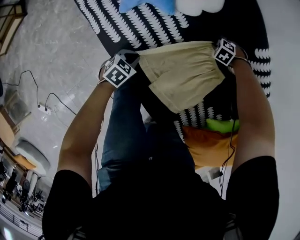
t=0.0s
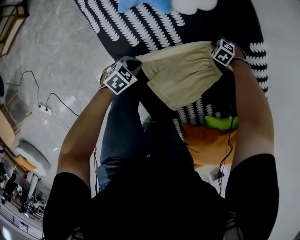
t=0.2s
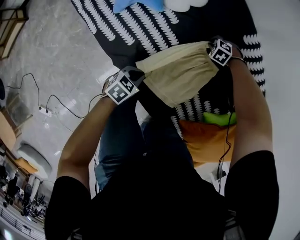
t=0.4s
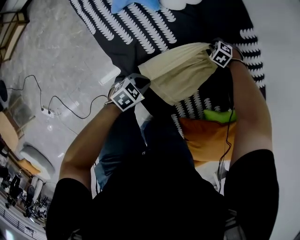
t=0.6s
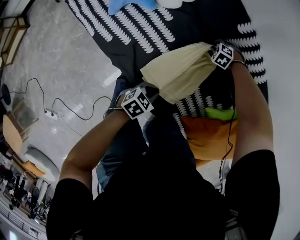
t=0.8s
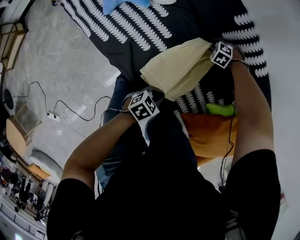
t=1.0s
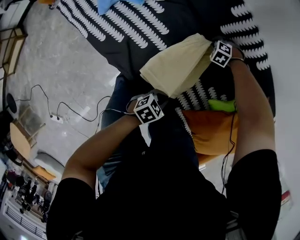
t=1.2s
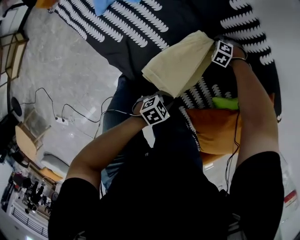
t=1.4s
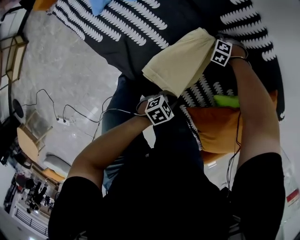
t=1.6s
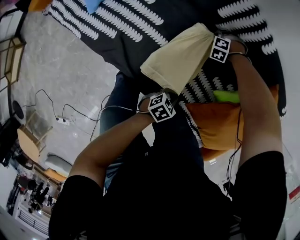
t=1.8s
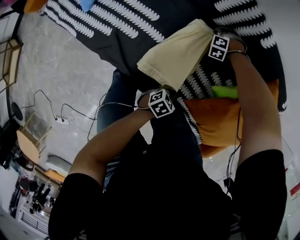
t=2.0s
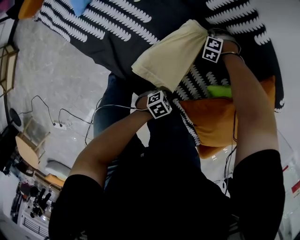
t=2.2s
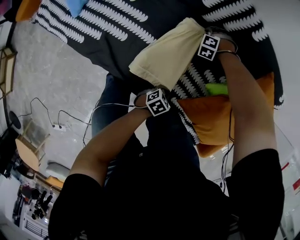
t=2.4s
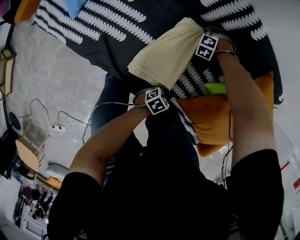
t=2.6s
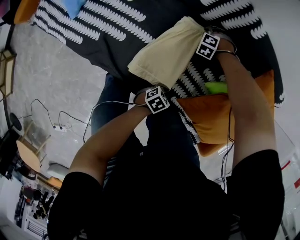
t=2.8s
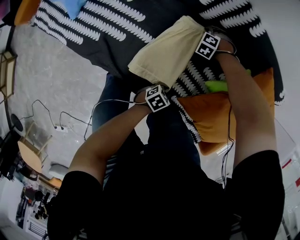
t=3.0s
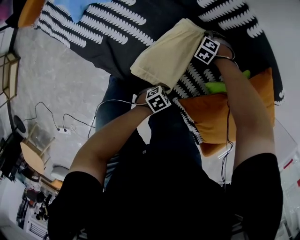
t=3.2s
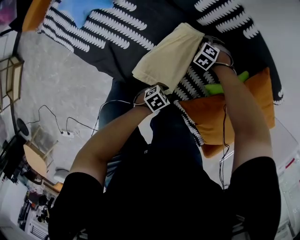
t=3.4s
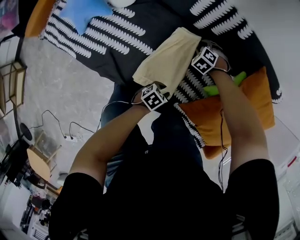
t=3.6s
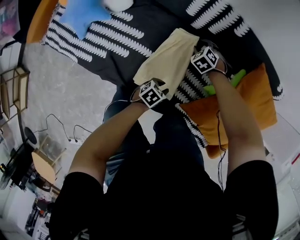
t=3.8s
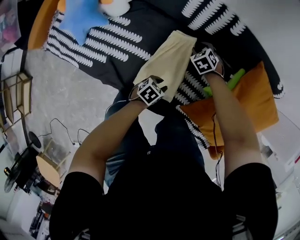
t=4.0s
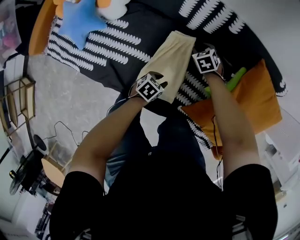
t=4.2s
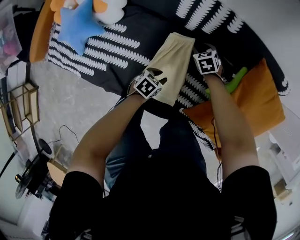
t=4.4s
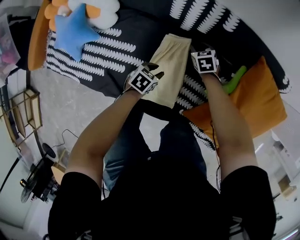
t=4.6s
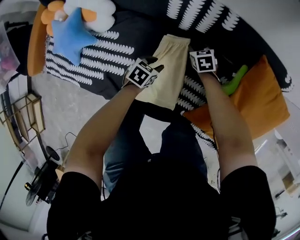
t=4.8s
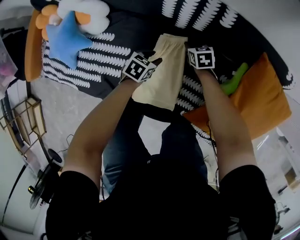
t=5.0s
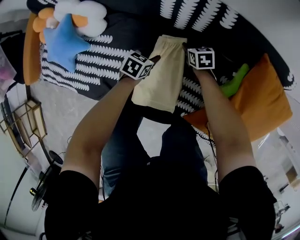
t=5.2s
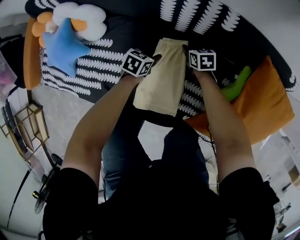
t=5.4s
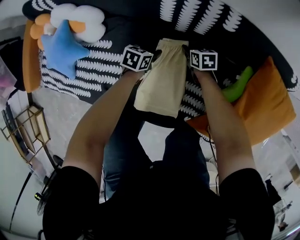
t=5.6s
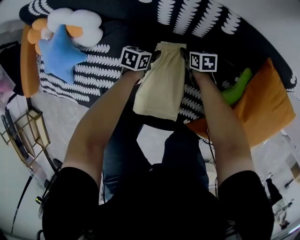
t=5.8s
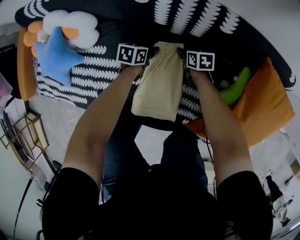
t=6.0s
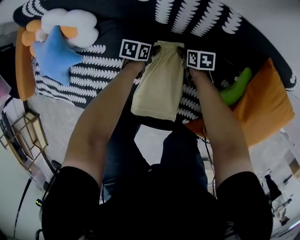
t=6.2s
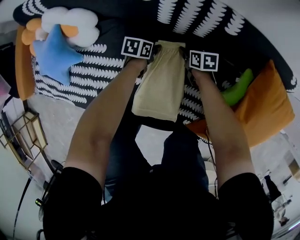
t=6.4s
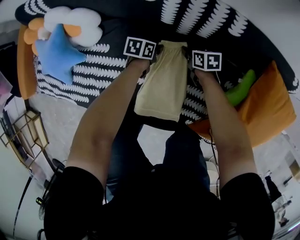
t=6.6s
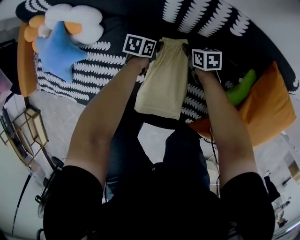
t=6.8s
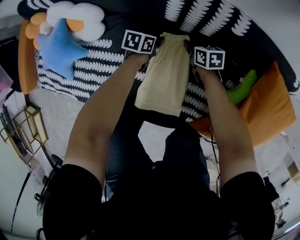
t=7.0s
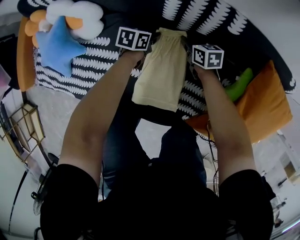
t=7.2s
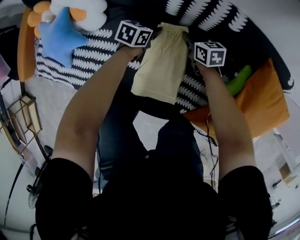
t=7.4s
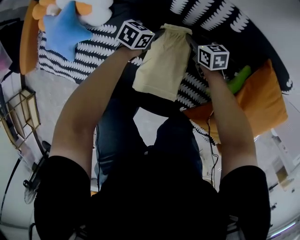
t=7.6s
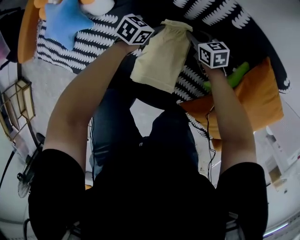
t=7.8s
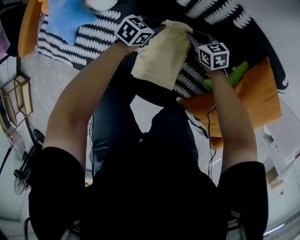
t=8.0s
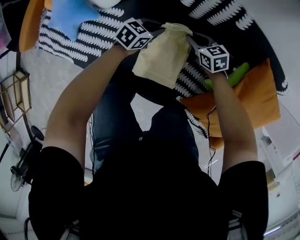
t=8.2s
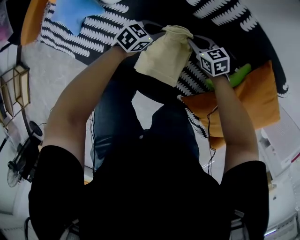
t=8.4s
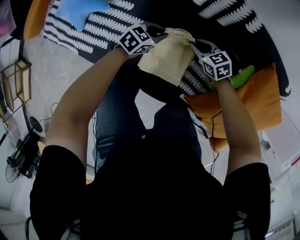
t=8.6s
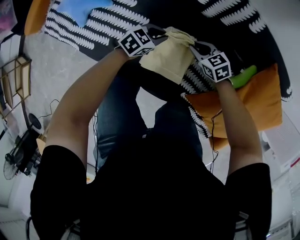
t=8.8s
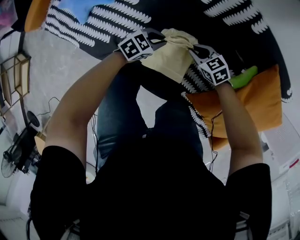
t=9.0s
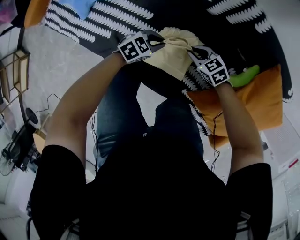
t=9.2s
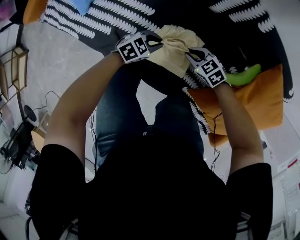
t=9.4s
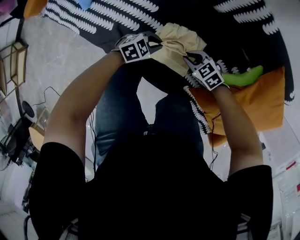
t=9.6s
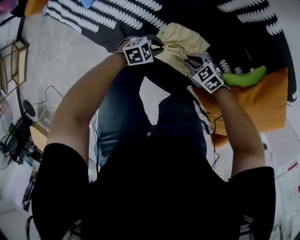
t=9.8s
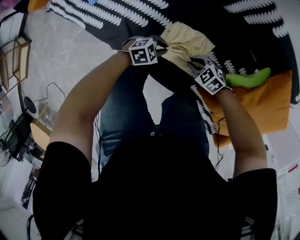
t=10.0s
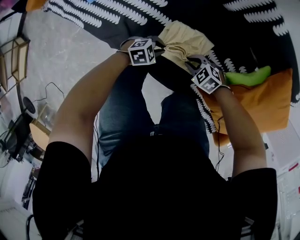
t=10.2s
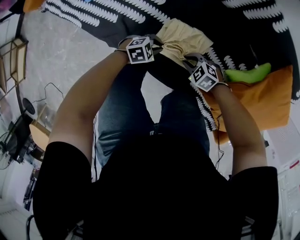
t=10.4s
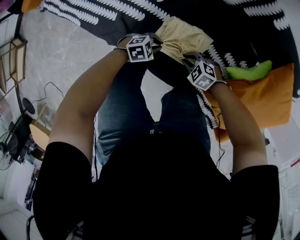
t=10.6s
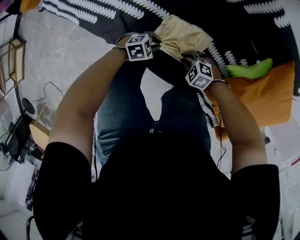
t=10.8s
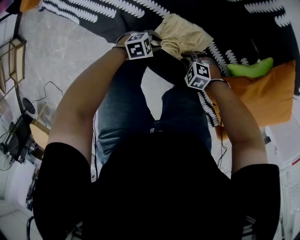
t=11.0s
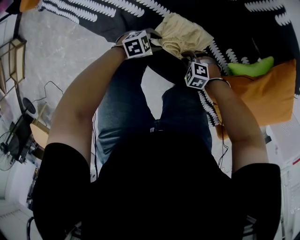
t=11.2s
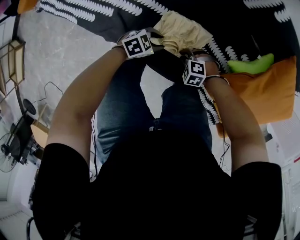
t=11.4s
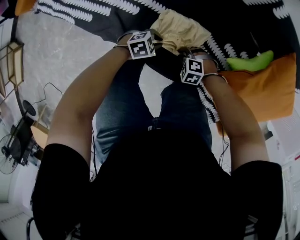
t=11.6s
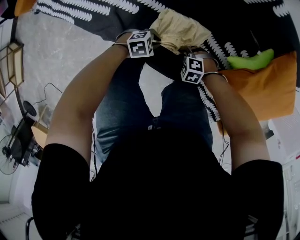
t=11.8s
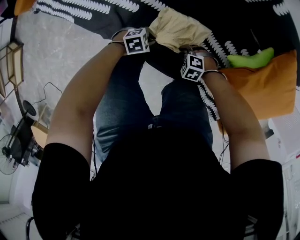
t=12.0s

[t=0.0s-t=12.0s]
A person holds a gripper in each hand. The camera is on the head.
t=0.0s to t=1.6s: The left gripper changes place by about 35 cm, and changes its angle by roughly 30 degrees. The right gripper moves roughly 15 cm.
t=1.6s to t=3.0s: The left gripper shifts approximately 5 cm downward, while the right gripper shifts by some 5 cm, and opens up.
t=3.0s to t=4.4s: The left gripper changes place by some 20 cm. The right gripper heads upward, covering roughly 5 cm, and rolls clockwise, seen from behind, by about 60 degrees.
t=4.4s to t=6.0s: The right gripper is displaced downward by some 10 cm, and twists roughly 40 degrees clockwise, seen from behind, while the left gripper goes some 20 cm forward and downward, and rotates about 20 degrees.
t=6.0s to t=7.6s: The two grippers go approximately 10 cm upward. The right gripper swivels approximately 20 degrees, and closes its fingers. The left gripper closes.
t=7.6s to t=9.0s: The right gripper ends up approximately 15 cm from where it was, and rotates roughly 40 degrees. The left gripper moves some 15 cm.
t=9.0s to t=10.4s: The right gripper ends up roughly 15 cm from where it was, and rotates some 30 degrees; the left gripper shifts by approximately 15 cm.
t=10.4s to t=12.0s: The right gripper heads downward, covering about 5 cm. Meanwhile the left gripper moves roughly 5 cm, and opens, then closes once more.

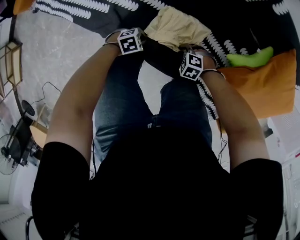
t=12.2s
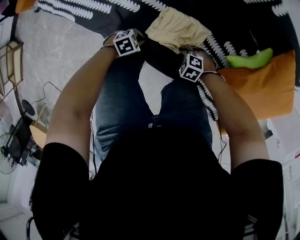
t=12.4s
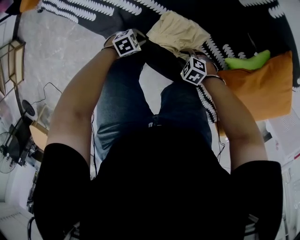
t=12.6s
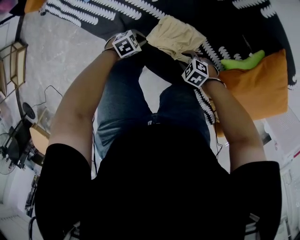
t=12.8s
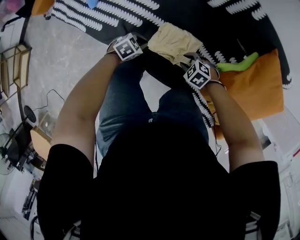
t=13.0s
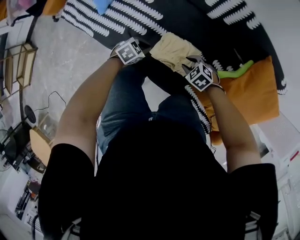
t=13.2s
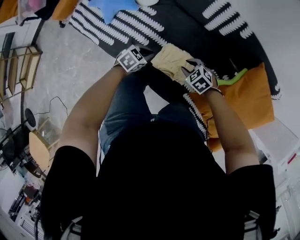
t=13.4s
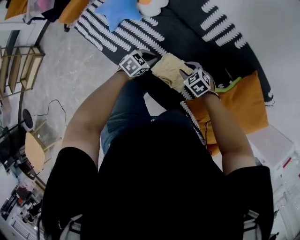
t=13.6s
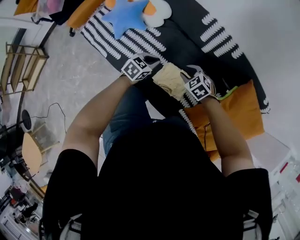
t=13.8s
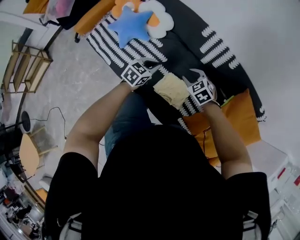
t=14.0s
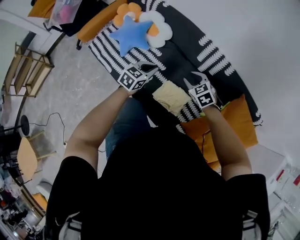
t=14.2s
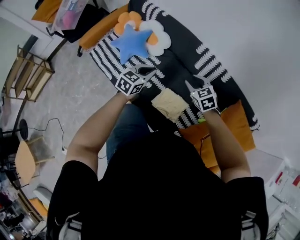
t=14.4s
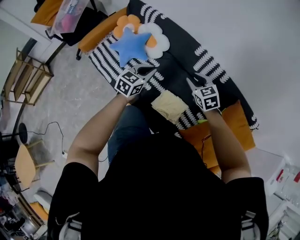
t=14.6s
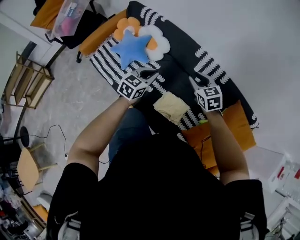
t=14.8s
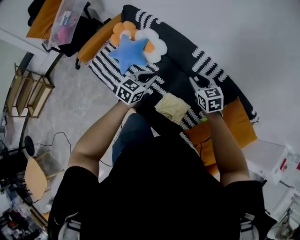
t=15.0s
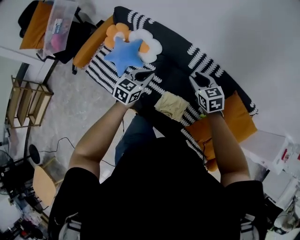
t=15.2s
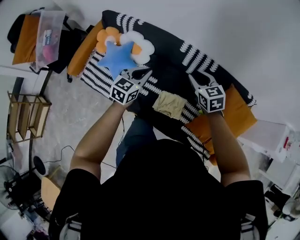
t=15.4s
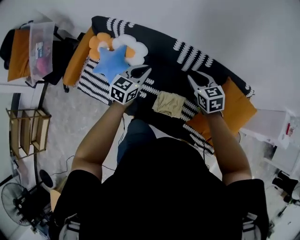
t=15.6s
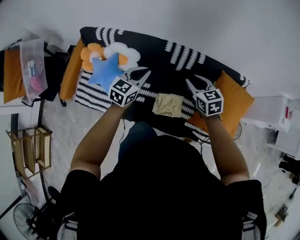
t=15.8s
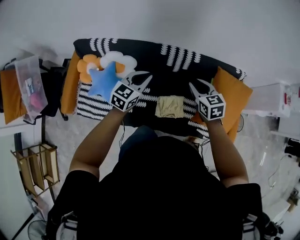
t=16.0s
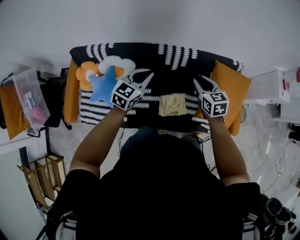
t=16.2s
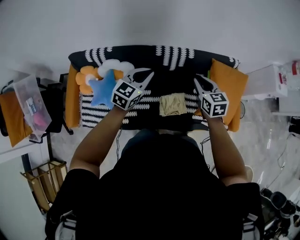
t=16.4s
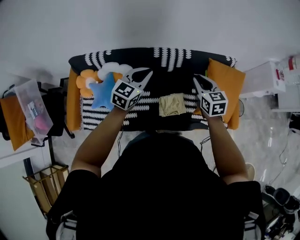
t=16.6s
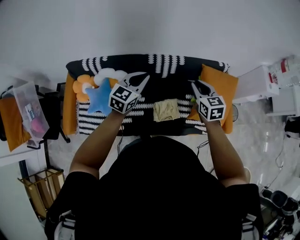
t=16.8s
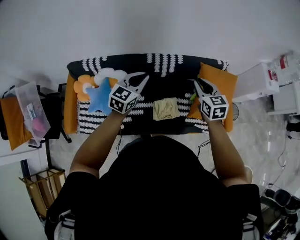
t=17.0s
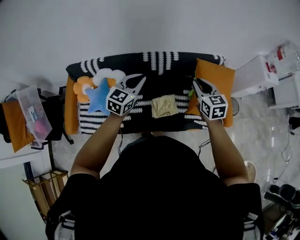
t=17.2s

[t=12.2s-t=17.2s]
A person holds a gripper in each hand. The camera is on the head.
t=12.2s to t=13.8s: The two grippers go approximately 30 cm upward. The right gripper rotates approximately 30 degrees, while the left gripper turns by about 50 degrees.
t=13.8s to t=15.6s: The grippers both shift upward by approximately 30 cm. The left gripper changes its angle by some 20 degrees. Meanwhile the right gripper changes its angle by about 50 degrees.
t=15.6s to t=17.2s: The left gripper shifts some 15 cm upward, and swivels approximately 20 degrees. Meanwhile the right gripper ends up some 20 cm from where it was, and changes its angle by some 30 degrees.

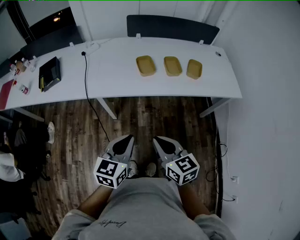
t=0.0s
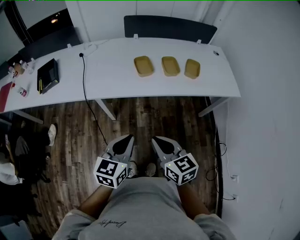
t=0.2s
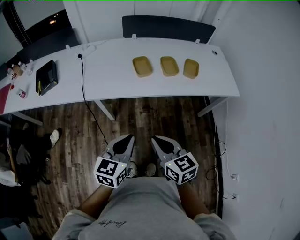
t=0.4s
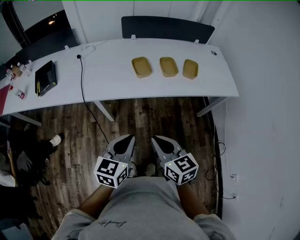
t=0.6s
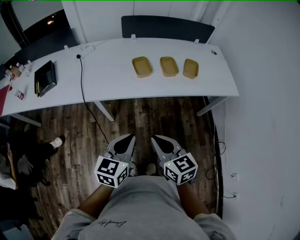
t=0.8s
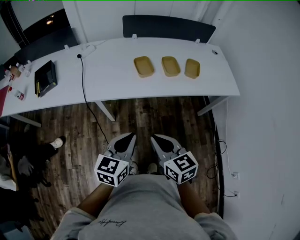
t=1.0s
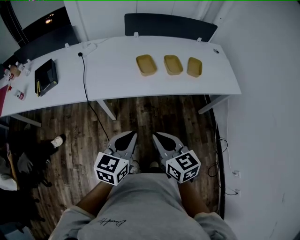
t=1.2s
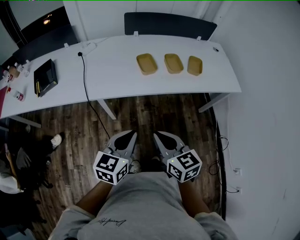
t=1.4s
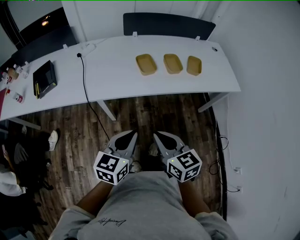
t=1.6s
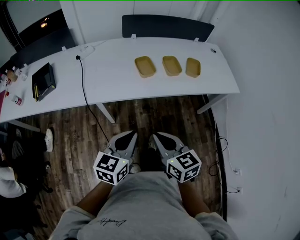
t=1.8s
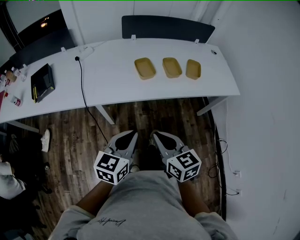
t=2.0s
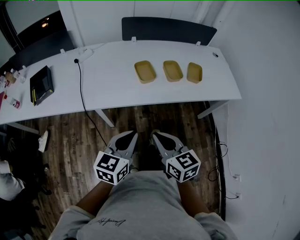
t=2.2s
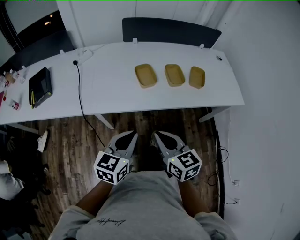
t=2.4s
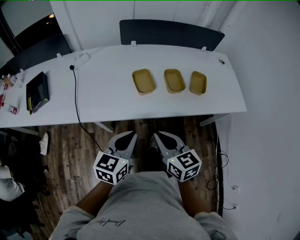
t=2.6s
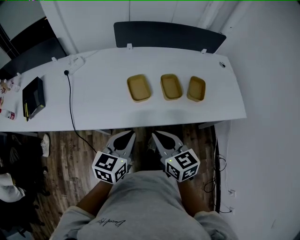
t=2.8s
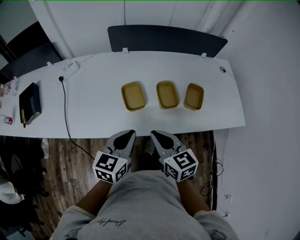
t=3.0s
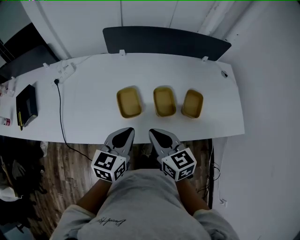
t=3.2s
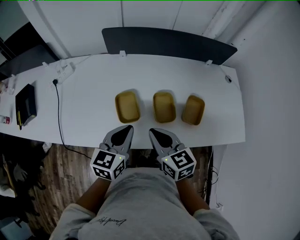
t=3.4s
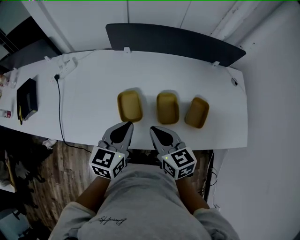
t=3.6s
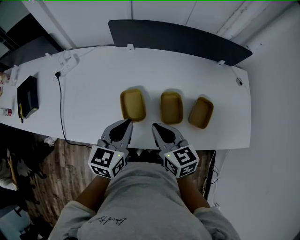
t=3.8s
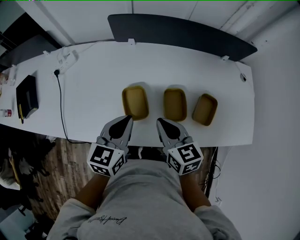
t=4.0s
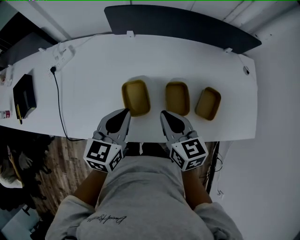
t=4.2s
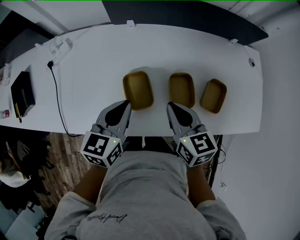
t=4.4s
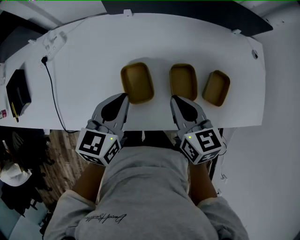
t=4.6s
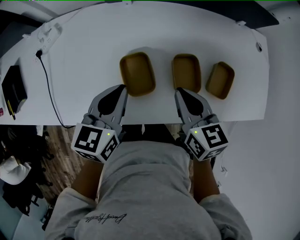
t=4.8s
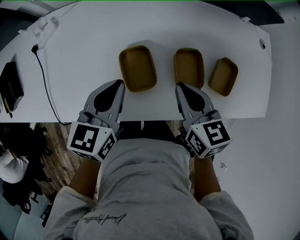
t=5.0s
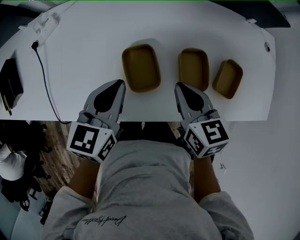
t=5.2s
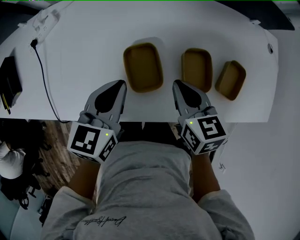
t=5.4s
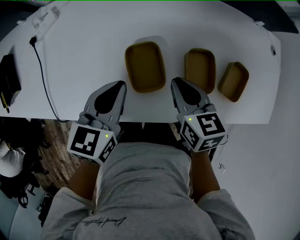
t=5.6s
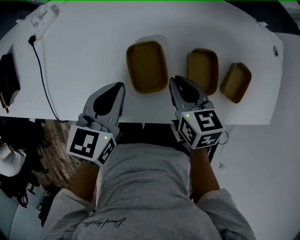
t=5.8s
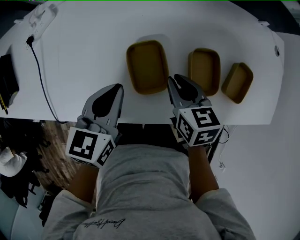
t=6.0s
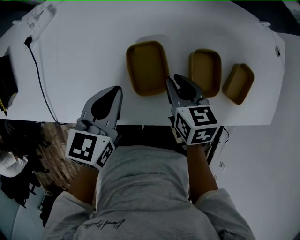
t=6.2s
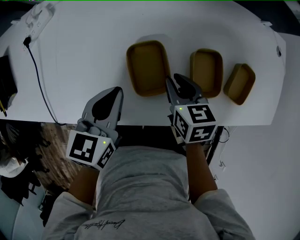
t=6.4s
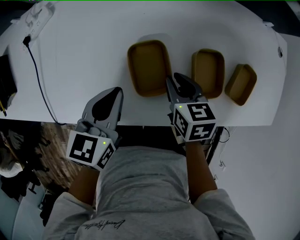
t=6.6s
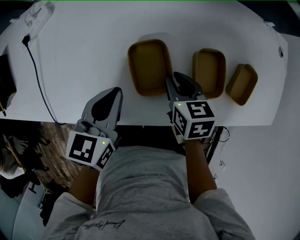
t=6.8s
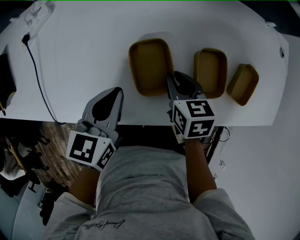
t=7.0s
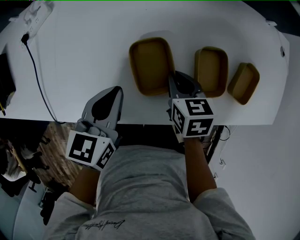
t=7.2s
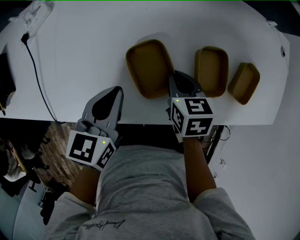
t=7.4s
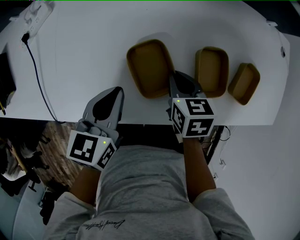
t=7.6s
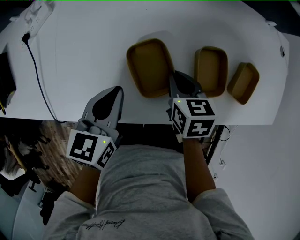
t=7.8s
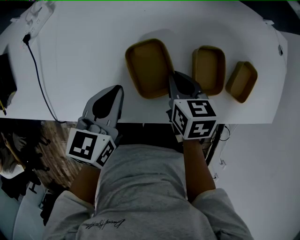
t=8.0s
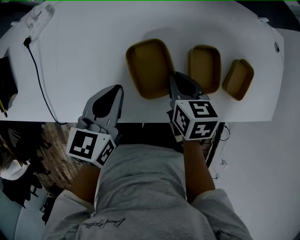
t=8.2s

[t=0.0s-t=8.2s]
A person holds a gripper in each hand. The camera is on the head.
t=0.0s to t=1.6s: The right gripper is displaced to the left by roughly 5 cm.
t=1.6s to t=3.2s: Both grippers move forward, some 35 cm.
t=3.2s to t=5.0s: The right gripper heads forward and downward, covering about 15 cm. Meanwhile the left gripper shifts approximately 15 cm forward and to the left.
t=5.0s to t=6.6s: The left gripper travels downward by some 5 cm. The right gripper heads downward, covering roughly 15 cm, and opens.
t=6.6s to t=8.2s: There are only small adjustments of the grippers.
